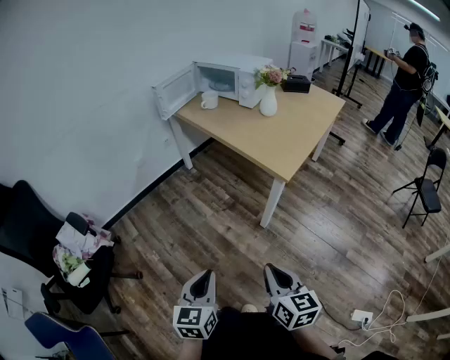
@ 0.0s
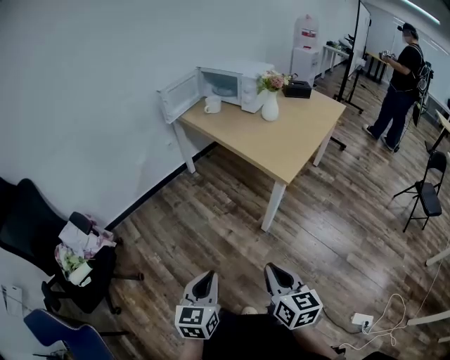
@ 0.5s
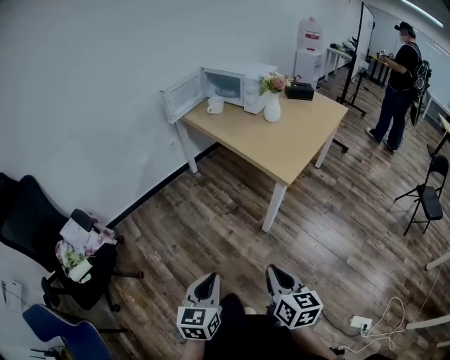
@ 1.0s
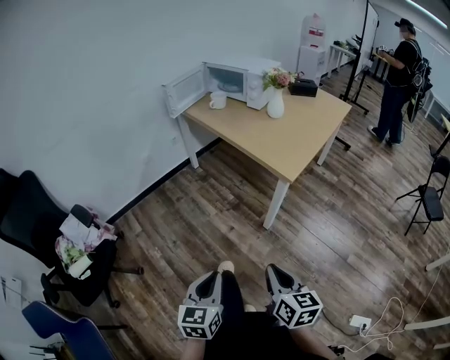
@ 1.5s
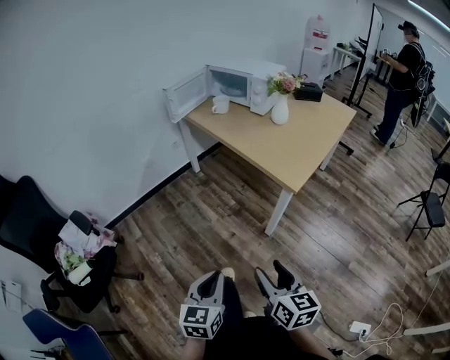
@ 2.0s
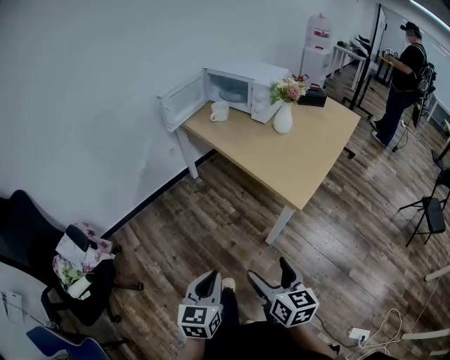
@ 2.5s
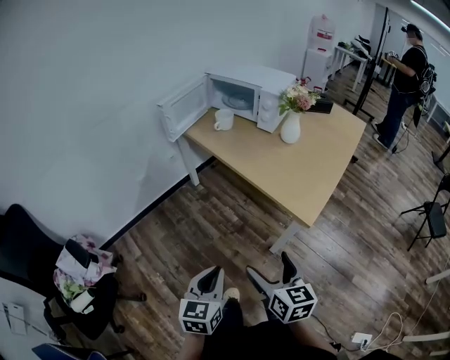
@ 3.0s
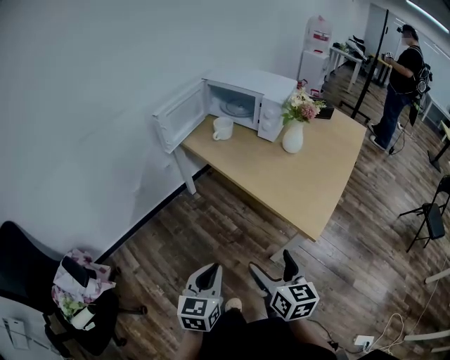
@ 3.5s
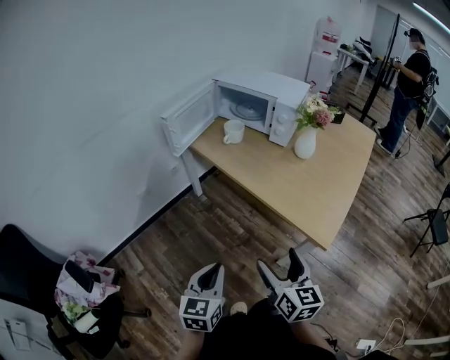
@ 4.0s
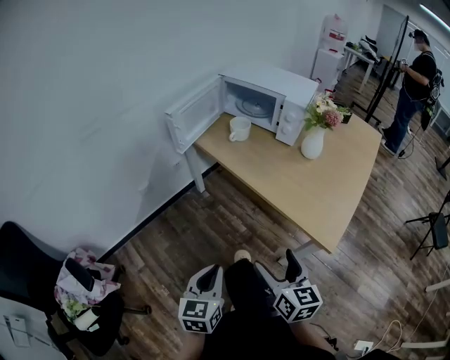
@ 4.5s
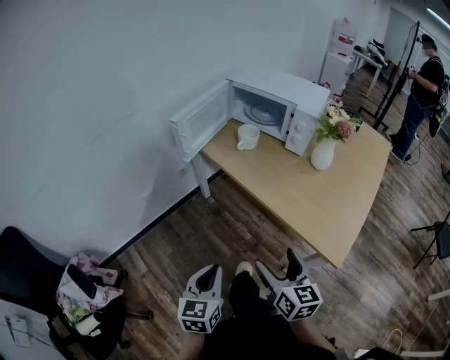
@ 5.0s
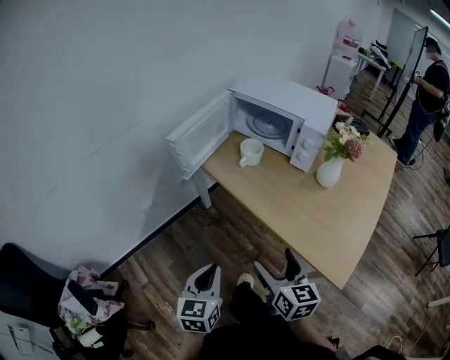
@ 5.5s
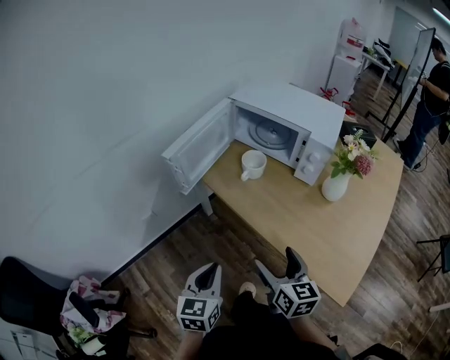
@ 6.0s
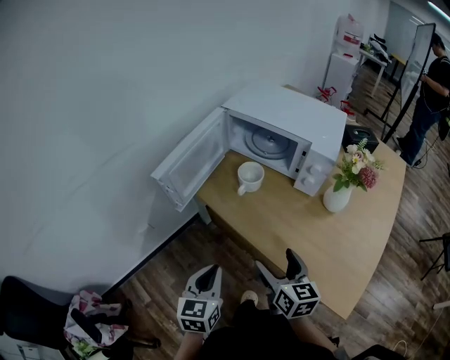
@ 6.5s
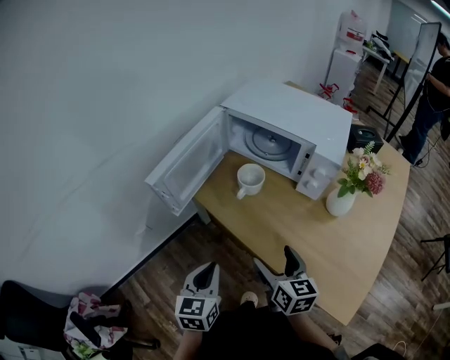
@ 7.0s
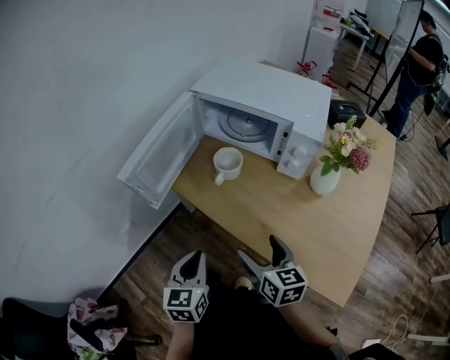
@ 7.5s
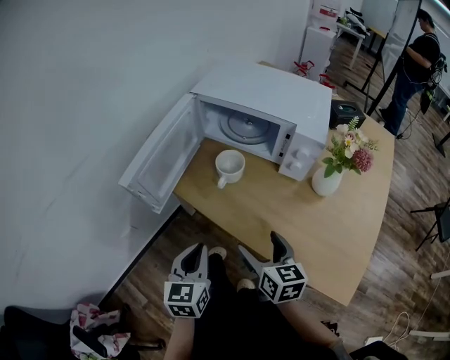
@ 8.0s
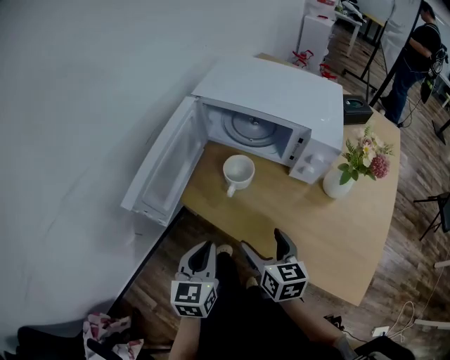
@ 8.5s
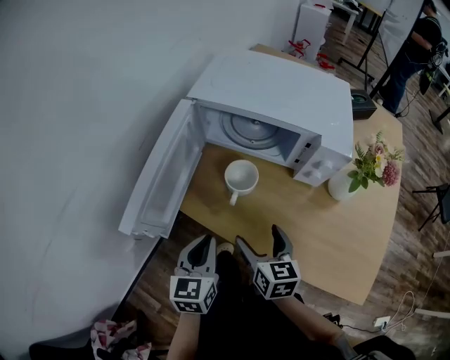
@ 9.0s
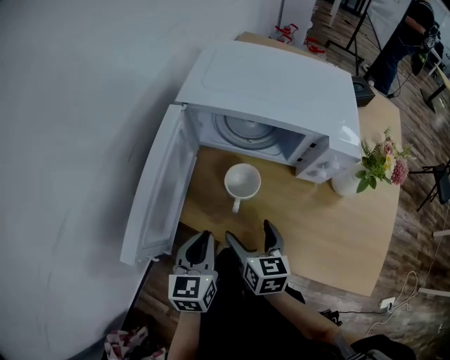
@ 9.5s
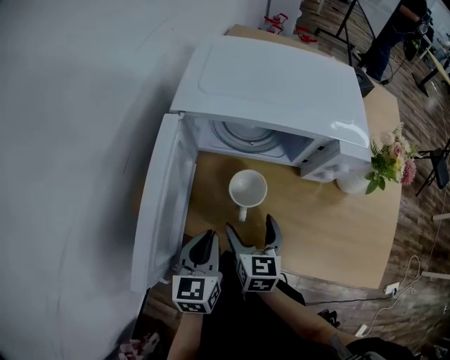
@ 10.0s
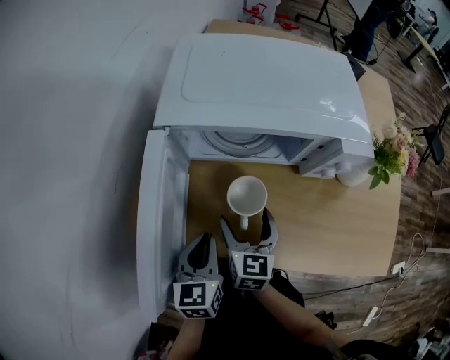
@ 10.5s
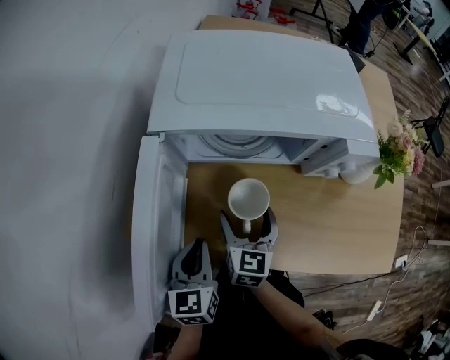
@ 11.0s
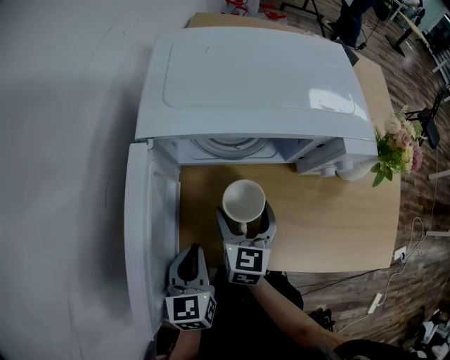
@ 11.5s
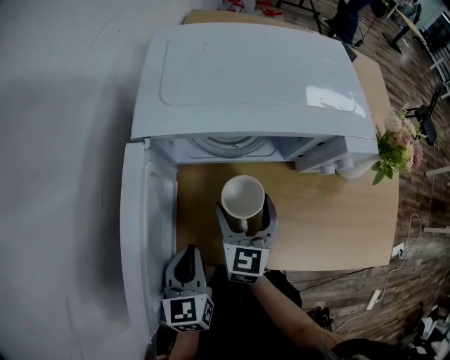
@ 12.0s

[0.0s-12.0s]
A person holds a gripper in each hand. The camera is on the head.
0.0s to 2.0s: The right gripper opens.
2.0s to 4.0s: The two grippers go some 30 cm forward. The right gripper opens.
4.0s to 6.0s: The two grippers go about 25 cm forward.
6.0s to 8.0s: The grippers both shift forward by about 15 cm.
8.0s to 10.0s: The left gripper is displaced forward by approximately 20 cm, while the right gripper heads forward and to the left, covering about 20 cm, and changes its angle by approximately 30 degrees.
10.0s to 12.0s: The right gripper goes roughly 10 cm forward. Meanwhile the left gripper heads to the left, covering about 5 cm.

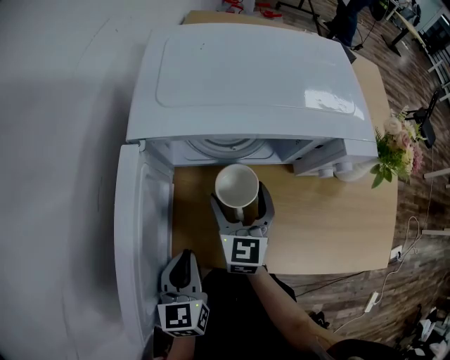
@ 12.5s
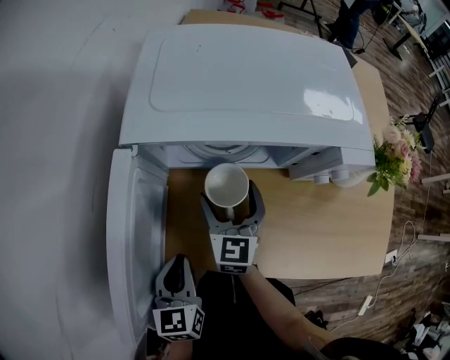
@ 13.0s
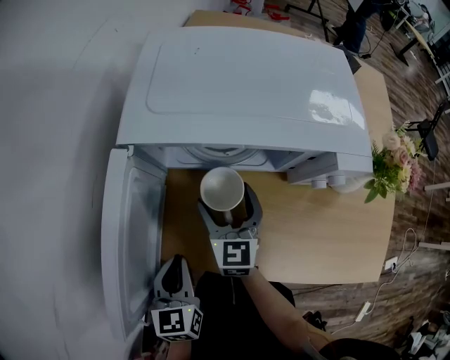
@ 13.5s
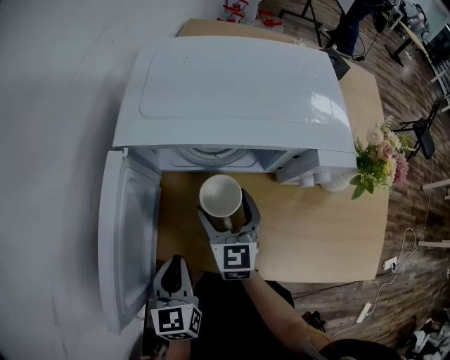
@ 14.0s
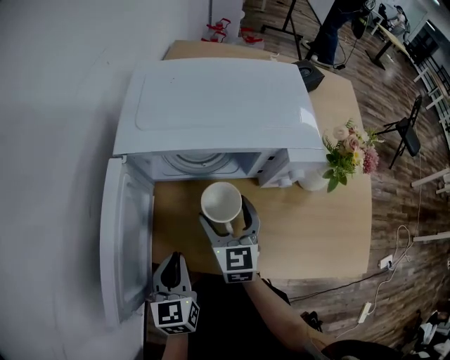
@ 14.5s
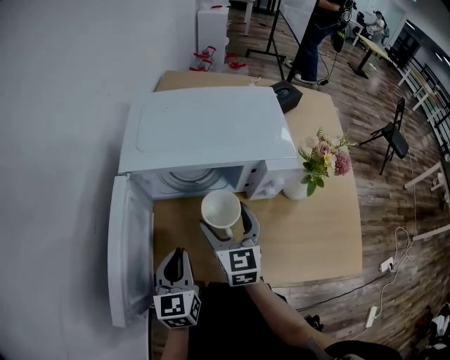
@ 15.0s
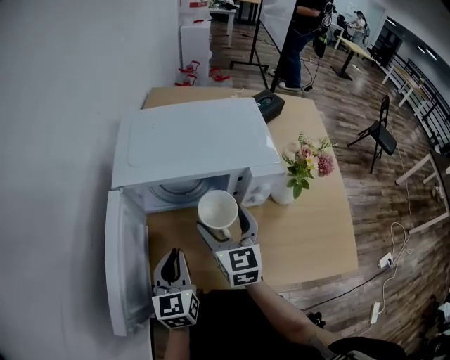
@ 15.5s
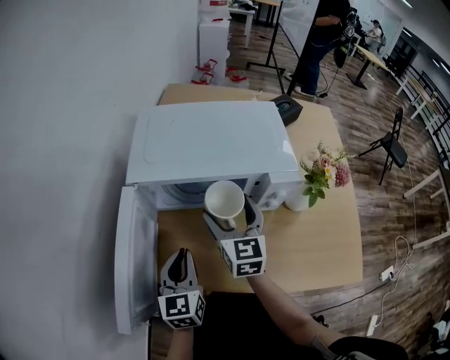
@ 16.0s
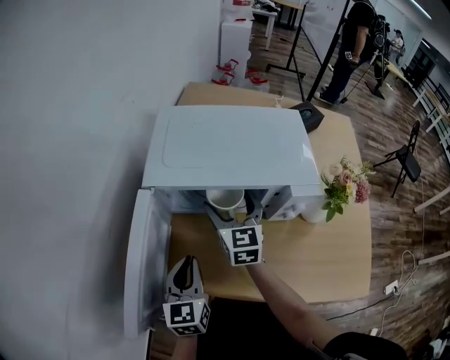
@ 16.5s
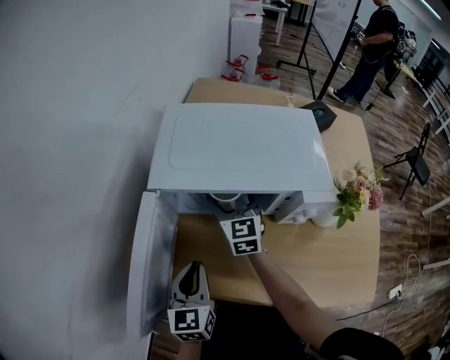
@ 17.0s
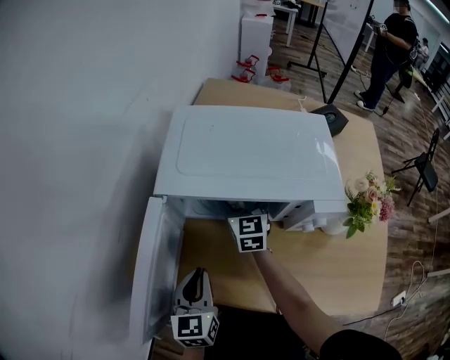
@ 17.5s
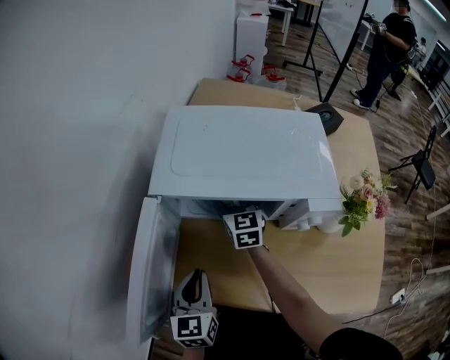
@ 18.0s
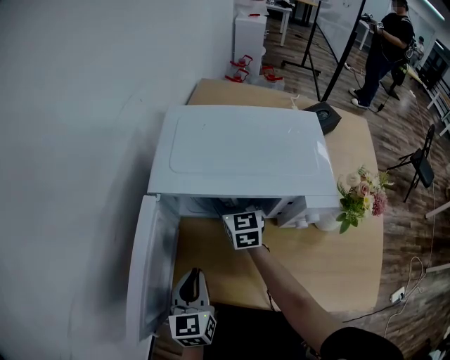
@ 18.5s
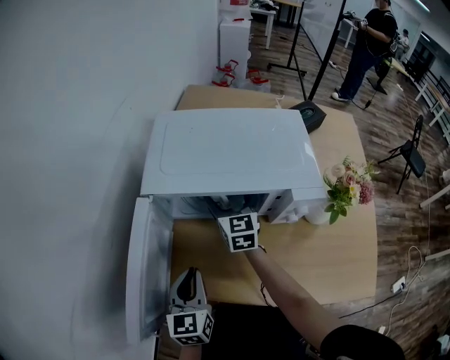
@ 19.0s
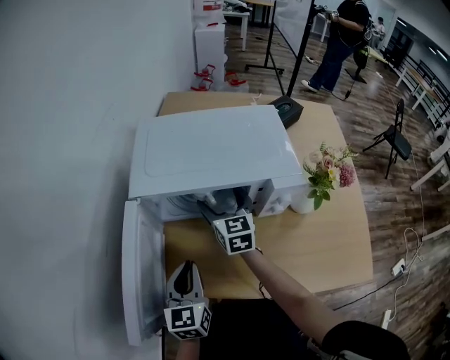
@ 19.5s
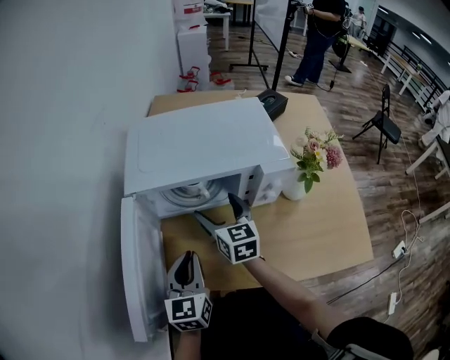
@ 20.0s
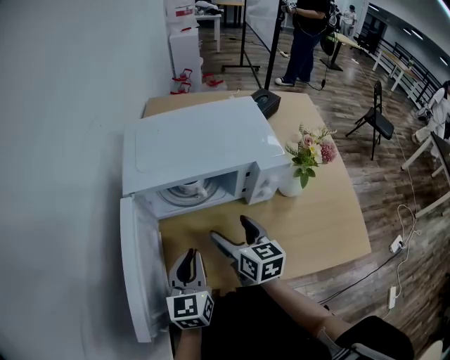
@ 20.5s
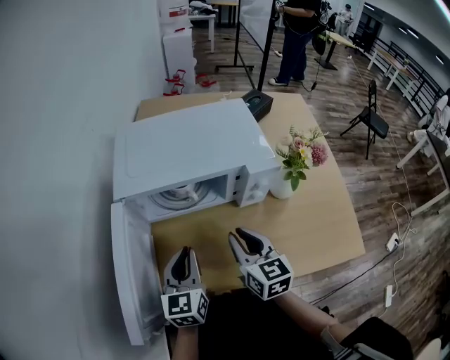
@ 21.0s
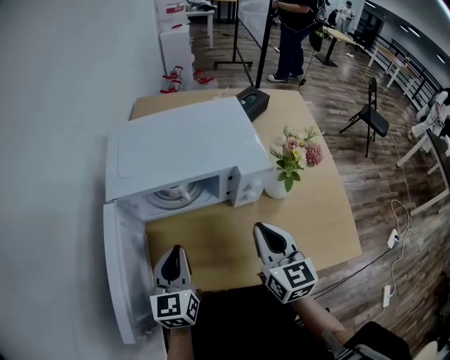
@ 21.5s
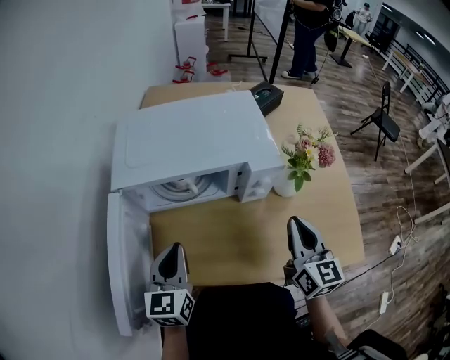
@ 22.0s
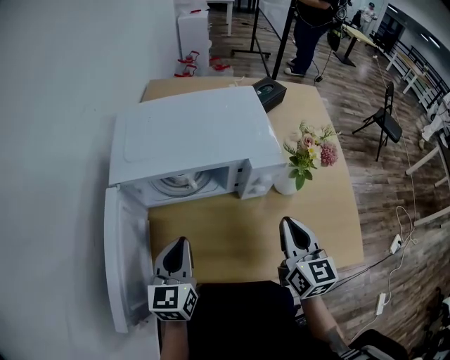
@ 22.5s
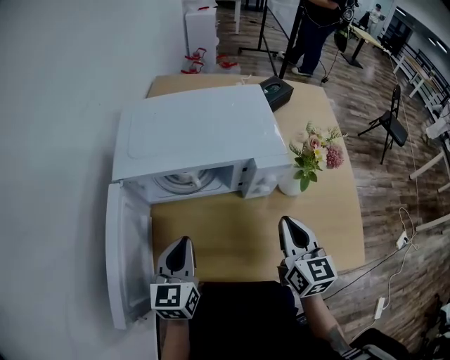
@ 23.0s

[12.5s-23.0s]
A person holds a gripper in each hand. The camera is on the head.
12.5s to 14.5s: The right gripper changes place by some 5 cm; the left gripper moves some 5 cm.
14.5s to 16.5s: The right gripper travels forward and upward by some 10 cm. The left gripper moves forward, roughly 5 cm.
19.0s to 21.0s: The left gripper changes place by some 5 cm. The right gripper moves backward and to the right, approximately 20 cm, and closes up.
21.0s to 23.0s: The right gripper moves to the right, approximately 15 cm.

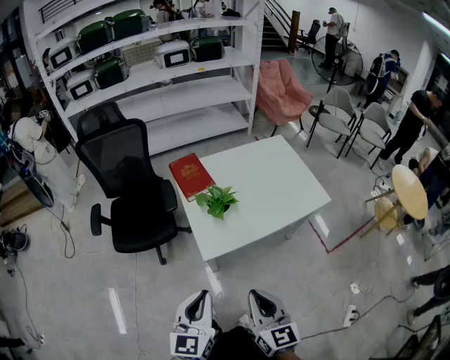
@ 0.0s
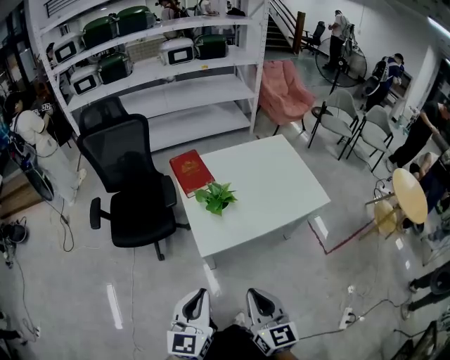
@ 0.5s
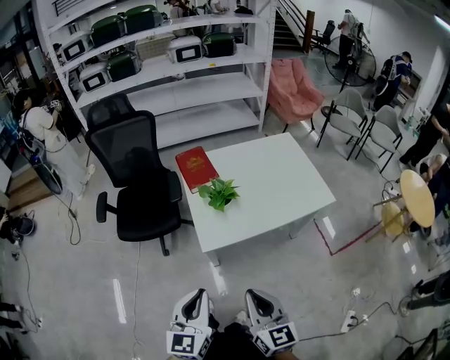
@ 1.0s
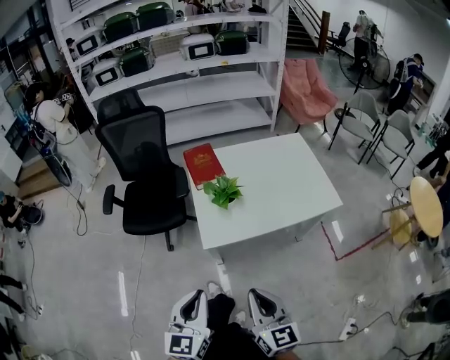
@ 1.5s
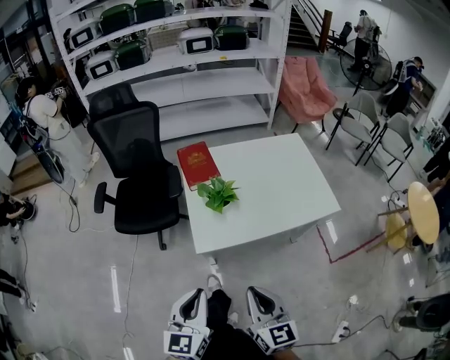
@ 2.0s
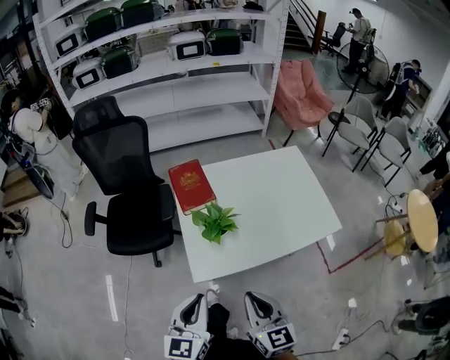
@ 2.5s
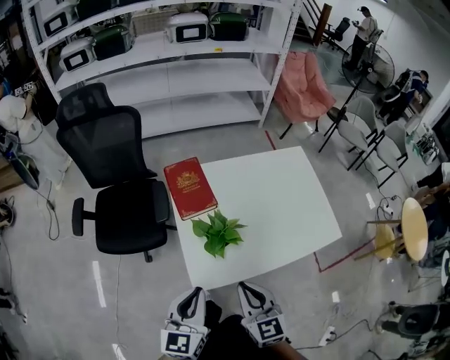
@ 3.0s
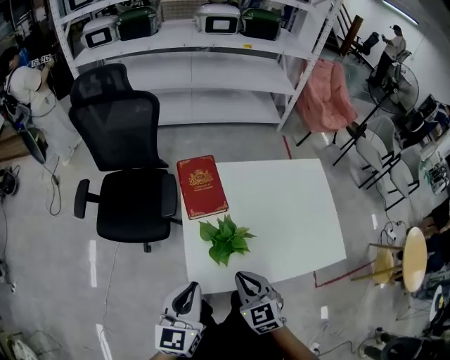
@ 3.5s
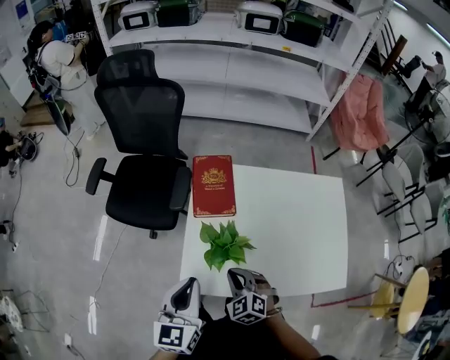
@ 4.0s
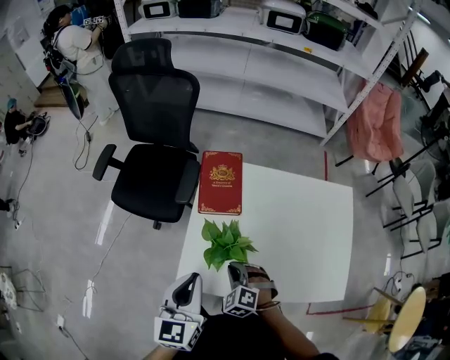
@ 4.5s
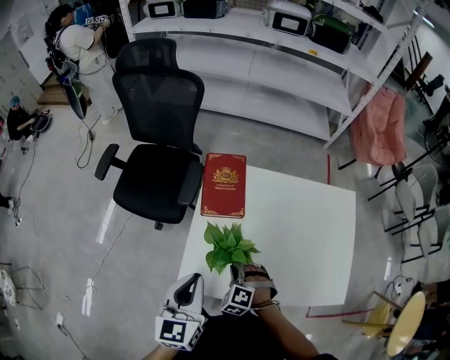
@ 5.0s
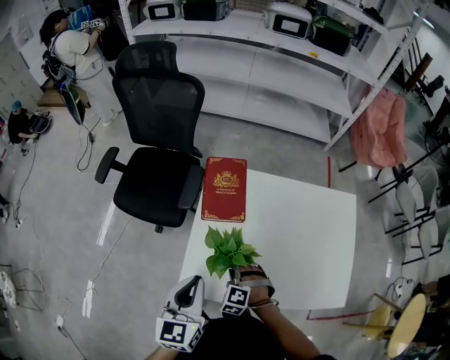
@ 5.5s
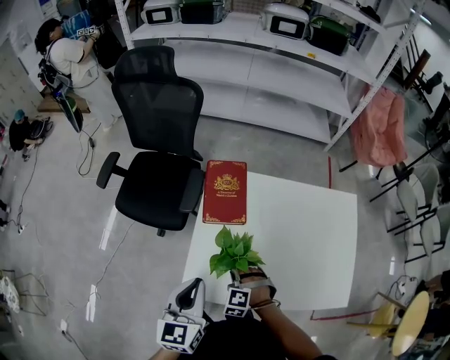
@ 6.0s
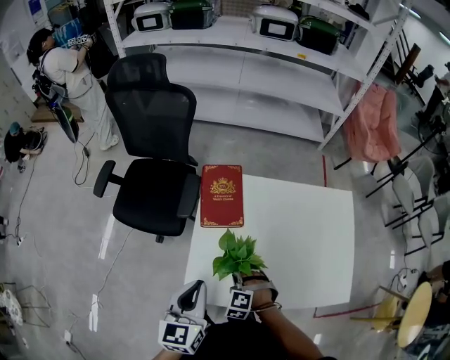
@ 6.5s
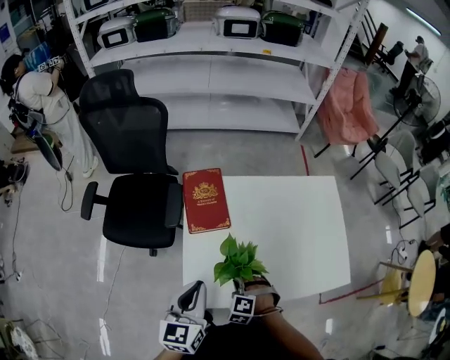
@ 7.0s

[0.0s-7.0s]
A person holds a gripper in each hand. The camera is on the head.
0.0s to 2.0s: The right gripper goes roughly 5 cm to the right.
2.0s to 3.5s: Both grippers travel together forward, approximately 30 cm. The right gripper swivels some 30 degrees.
3.5s to 5.0s: The left gripper is displaced to the right by about 5 cm. The right gripper is displaced downward and forward by approximately 15 cm, and rotates around the line of its fingers by some 50 degrees, counterclockwise from behind.
5.0s to 7.0s: There are only small adjustments of the grippers.
